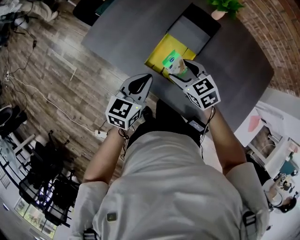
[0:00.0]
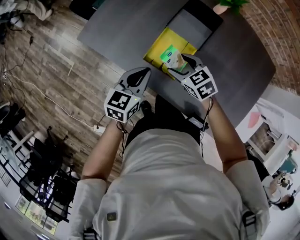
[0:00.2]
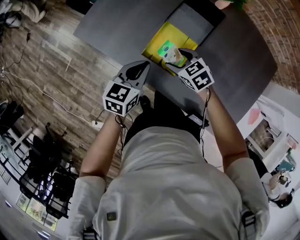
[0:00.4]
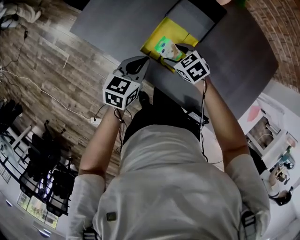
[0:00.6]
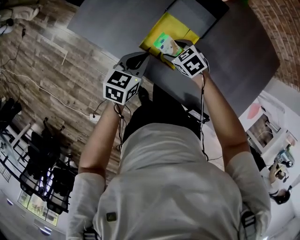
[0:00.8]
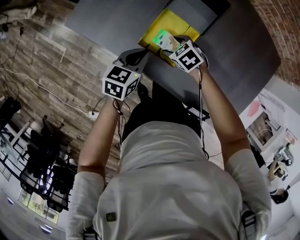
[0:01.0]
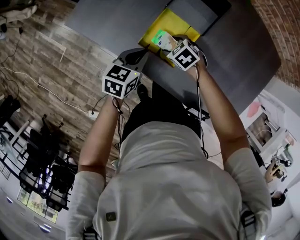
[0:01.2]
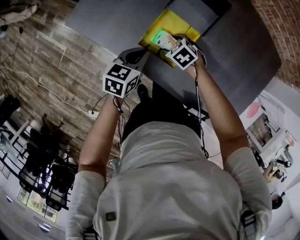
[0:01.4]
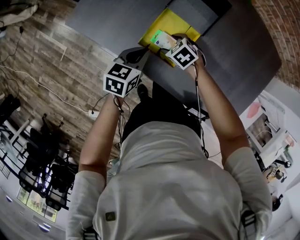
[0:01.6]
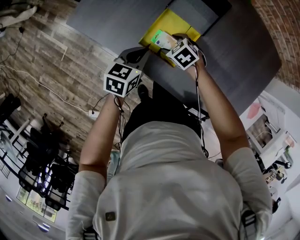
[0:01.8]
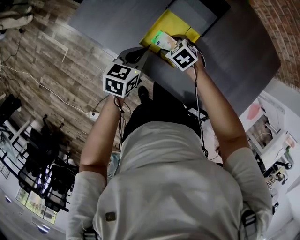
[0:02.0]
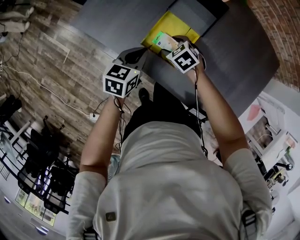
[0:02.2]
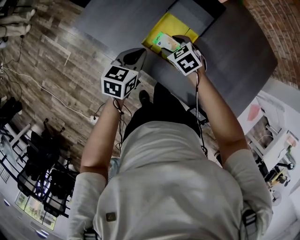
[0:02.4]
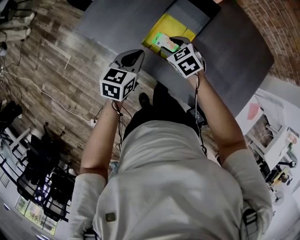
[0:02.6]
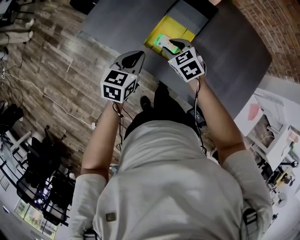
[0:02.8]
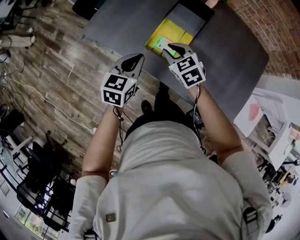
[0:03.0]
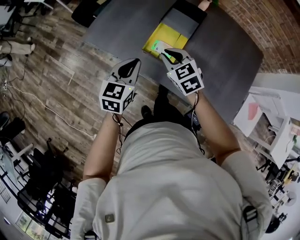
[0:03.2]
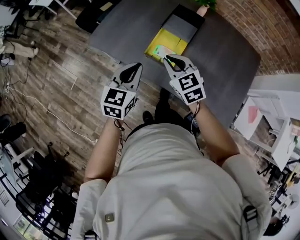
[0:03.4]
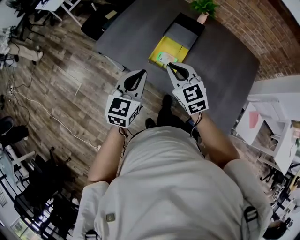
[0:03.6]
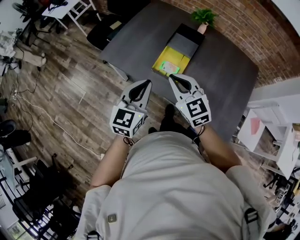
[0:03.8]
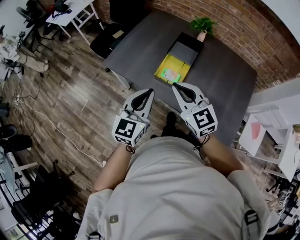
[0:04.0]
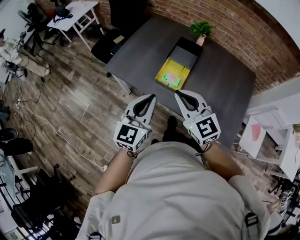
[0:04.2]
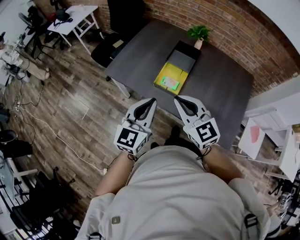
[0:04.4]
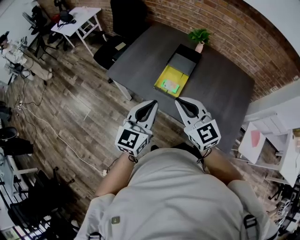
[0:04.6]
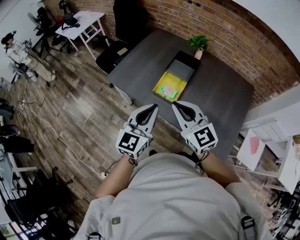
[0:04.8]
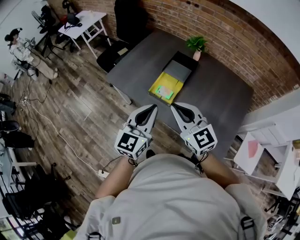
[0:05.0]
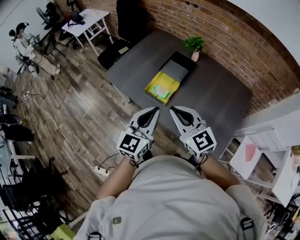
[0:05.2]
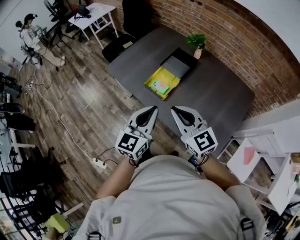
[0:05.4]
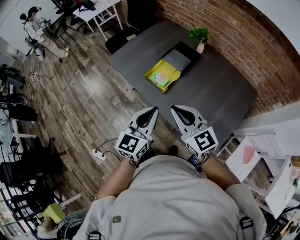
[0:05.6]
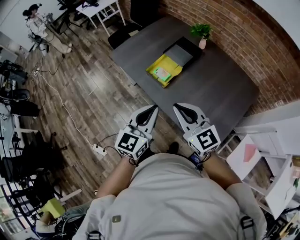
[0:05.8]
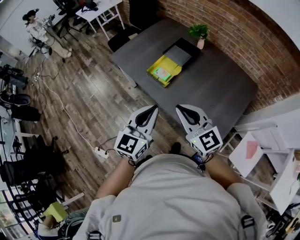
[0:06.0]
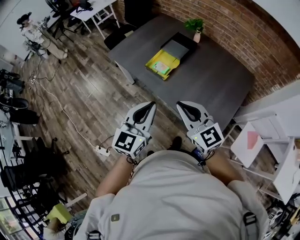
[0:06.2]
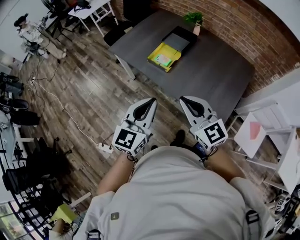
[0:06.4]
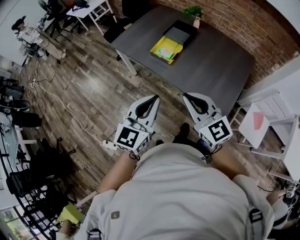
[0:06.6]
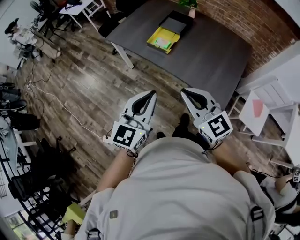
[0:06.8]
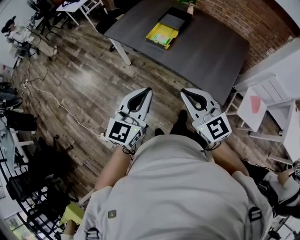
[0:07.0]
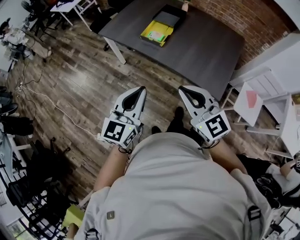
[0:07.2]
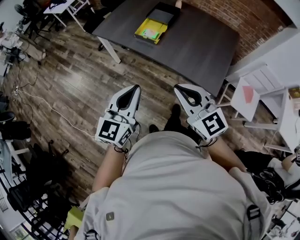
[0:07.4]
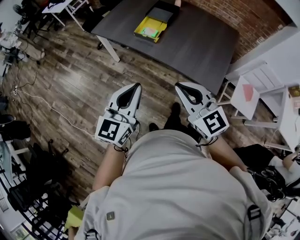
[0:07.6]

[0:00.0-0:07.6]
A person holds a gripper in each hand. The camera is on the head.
0:00.0 to 0:01.6: Both grippers travel together downward, approximately 15 cm. The right gripper turns by about 30 degrees.
0:01.6 to 0:03.0: The right gripper is displaced upward by roughly 20 cm, changes its angle by about 30 degrees, and closes its fingers; the left gripper is displaced upward, backward and to the left by approximately 15 cm.
0:03.0 to 0:04.6: The two grippers go roughly 30 cm upward and backward. The left gripper rotates approximately 30 degrees. The right gripper points its fingers some 30 degrees further upward.
0:04.6 to 0:06.0: The right gripper travels to the right and backward by roughly 20 cm. Meanwhile the left gripper travels backward and to the right by about 25 cm.
0:06.0 to 0:07.6: The two grippers go roughly 20 cm backward and to the left.

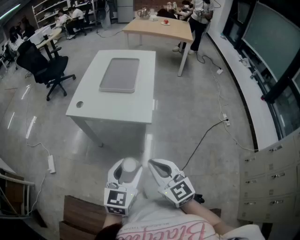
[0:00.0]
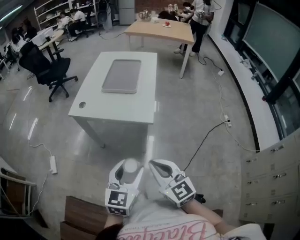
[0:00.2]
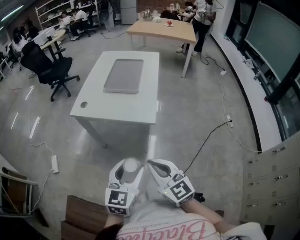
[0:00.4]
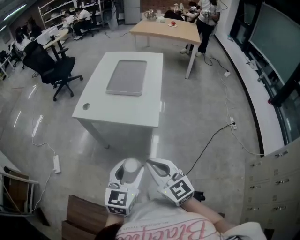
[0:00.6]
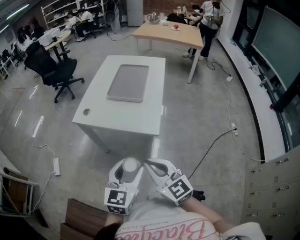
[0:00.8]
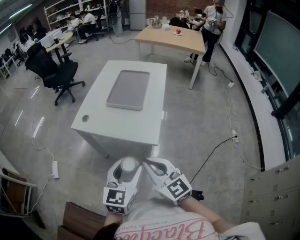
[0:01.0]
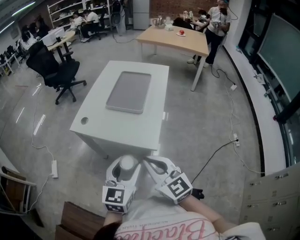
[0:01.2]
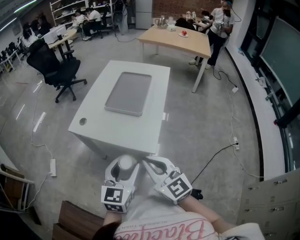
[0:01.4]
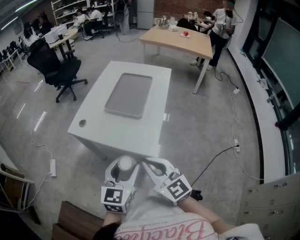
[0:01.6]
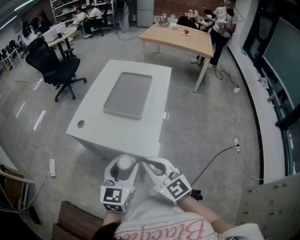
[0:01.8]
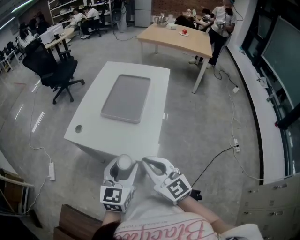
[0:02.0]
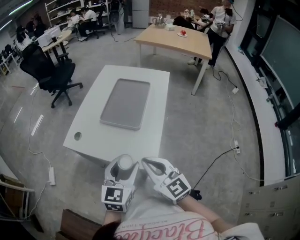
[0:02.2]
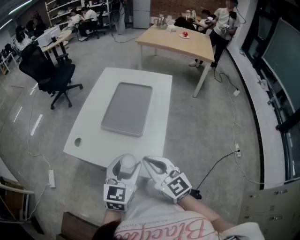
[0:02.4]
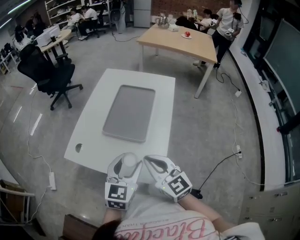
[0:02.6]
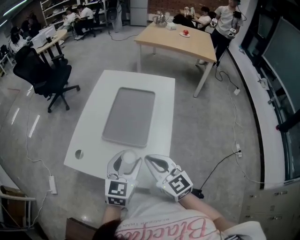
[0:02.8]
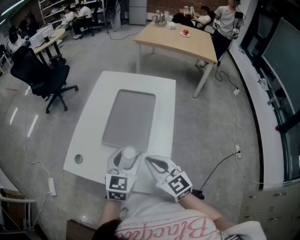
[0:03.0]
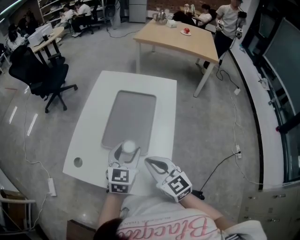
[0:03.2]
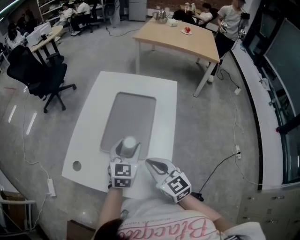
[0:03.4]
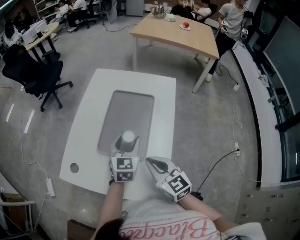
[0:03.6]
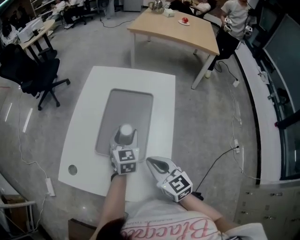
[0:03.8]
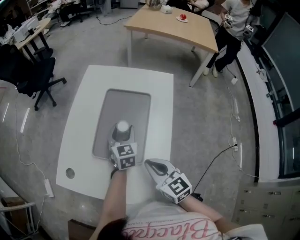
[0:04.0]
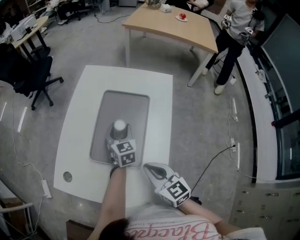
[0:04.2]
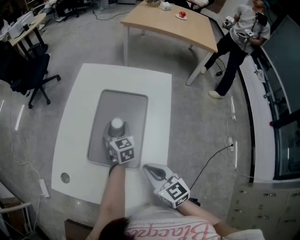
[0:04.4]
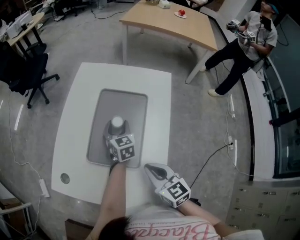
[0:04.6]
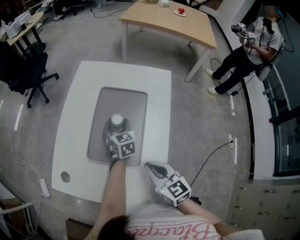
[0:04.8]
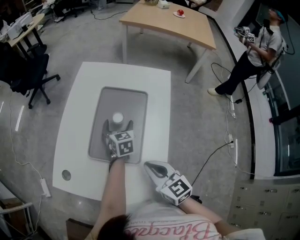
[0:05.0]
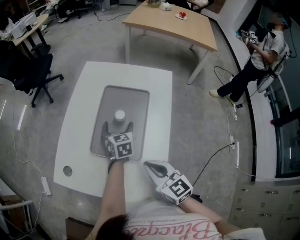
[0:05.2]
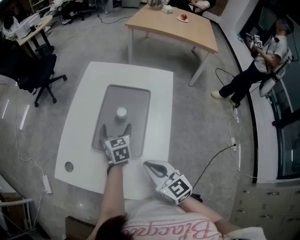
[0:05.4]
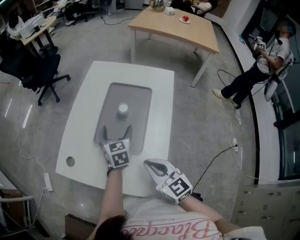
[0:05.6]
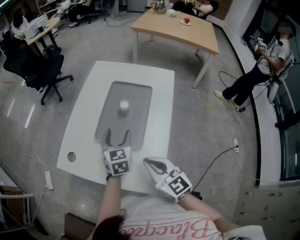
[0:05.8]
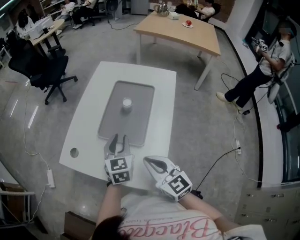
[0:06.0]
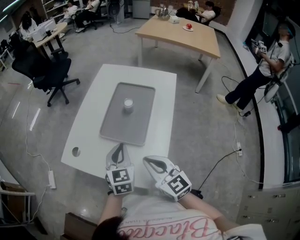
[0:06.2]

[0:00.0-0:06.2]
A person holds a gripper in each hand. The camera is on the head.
0:00.0 to 0:01.6: Both grippers travel together forward, some 15 cm.
0:01.6 to 0:03.2: The two grippers go roughly 25 cm forward.
0:03.2 to 0:04.6: The right gripper heads downward, covering some 5 cm. Meanwhile the left gripper heads forward and downward, covering approximately 20 cm, and turns by approximately 20 degrees.
0:04.6 to 0:06.2: The right gripper travels upward, to the left and backward by about 10 cm, while the left gripper travels backward, upward and to the left by some 25 cm, and closes.

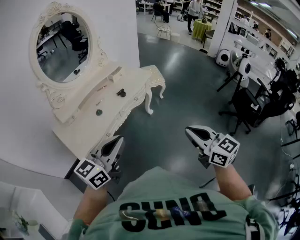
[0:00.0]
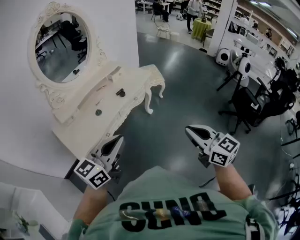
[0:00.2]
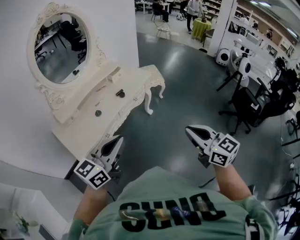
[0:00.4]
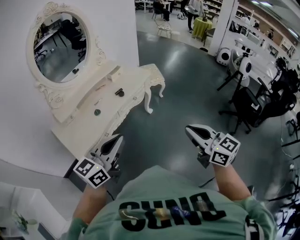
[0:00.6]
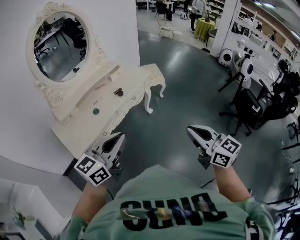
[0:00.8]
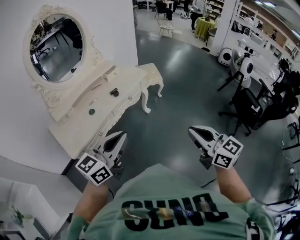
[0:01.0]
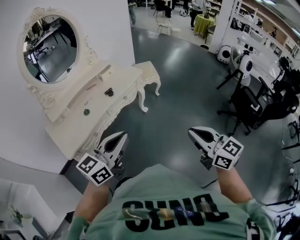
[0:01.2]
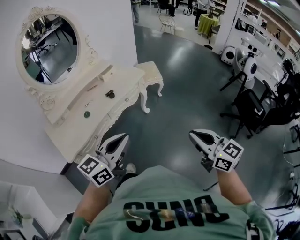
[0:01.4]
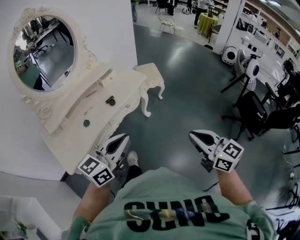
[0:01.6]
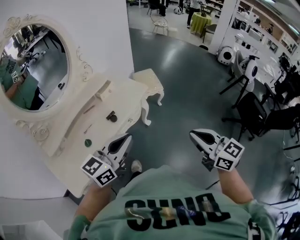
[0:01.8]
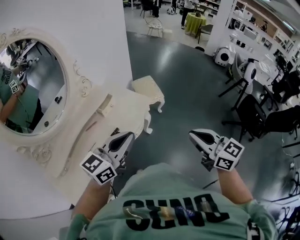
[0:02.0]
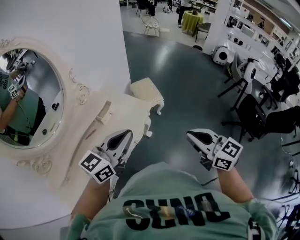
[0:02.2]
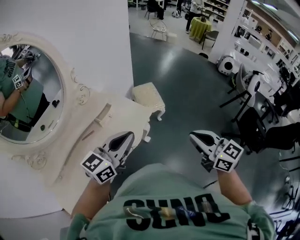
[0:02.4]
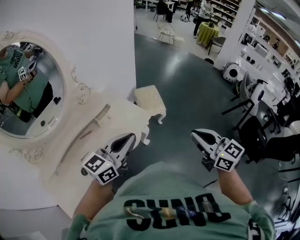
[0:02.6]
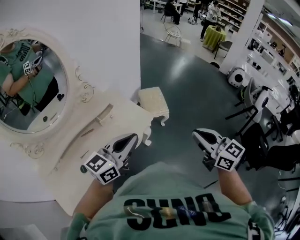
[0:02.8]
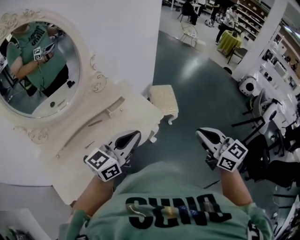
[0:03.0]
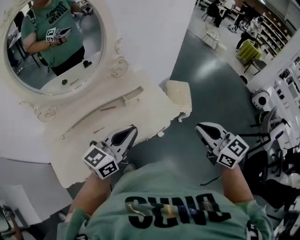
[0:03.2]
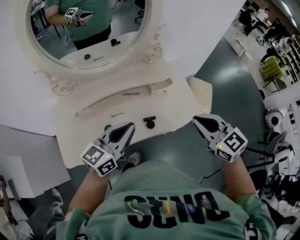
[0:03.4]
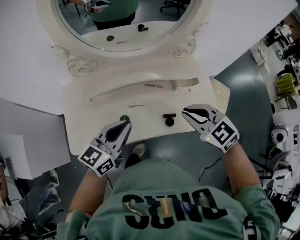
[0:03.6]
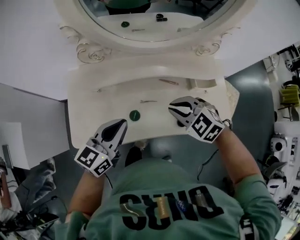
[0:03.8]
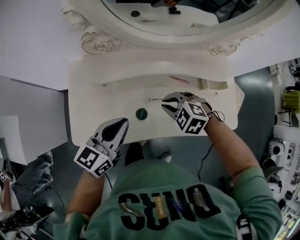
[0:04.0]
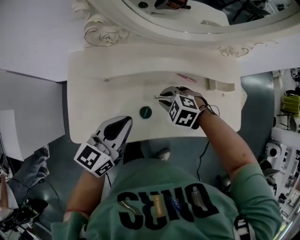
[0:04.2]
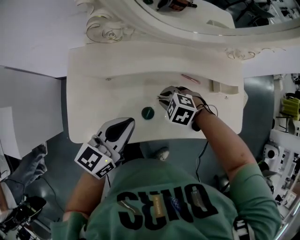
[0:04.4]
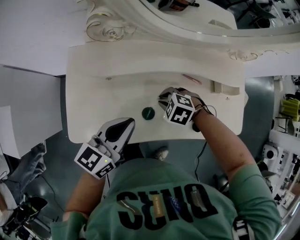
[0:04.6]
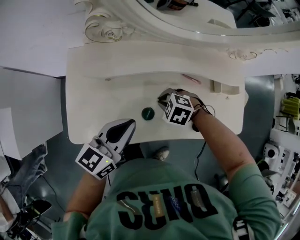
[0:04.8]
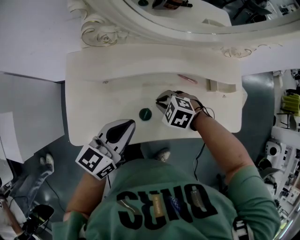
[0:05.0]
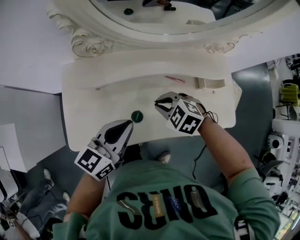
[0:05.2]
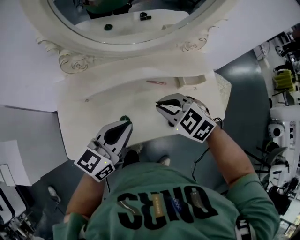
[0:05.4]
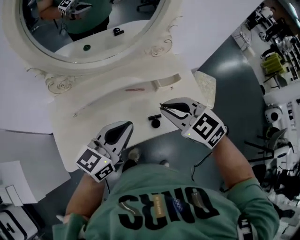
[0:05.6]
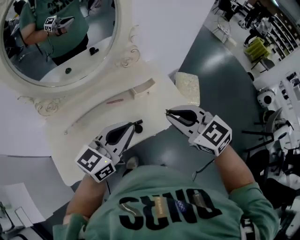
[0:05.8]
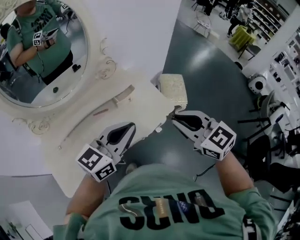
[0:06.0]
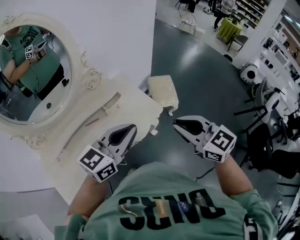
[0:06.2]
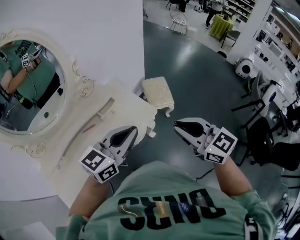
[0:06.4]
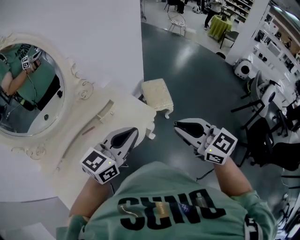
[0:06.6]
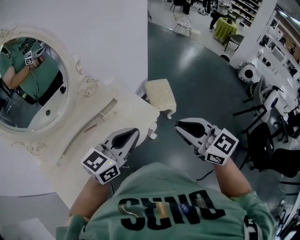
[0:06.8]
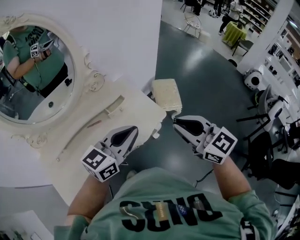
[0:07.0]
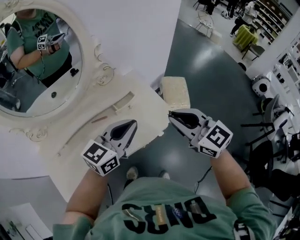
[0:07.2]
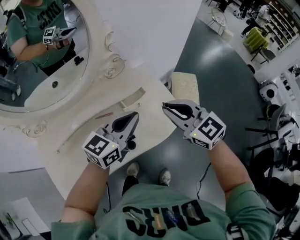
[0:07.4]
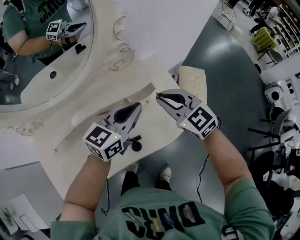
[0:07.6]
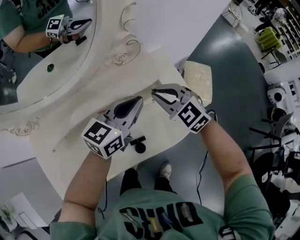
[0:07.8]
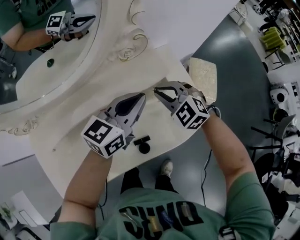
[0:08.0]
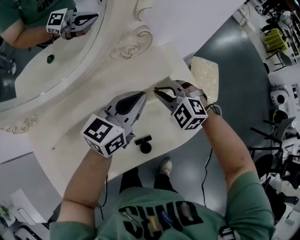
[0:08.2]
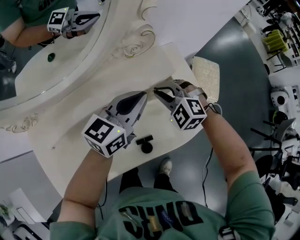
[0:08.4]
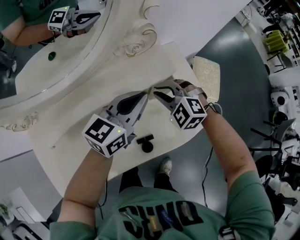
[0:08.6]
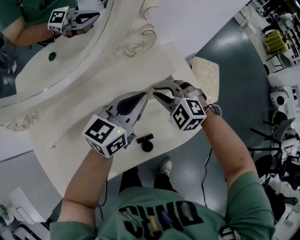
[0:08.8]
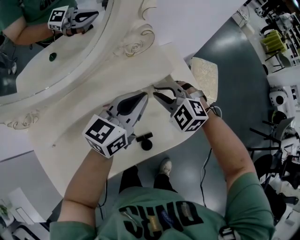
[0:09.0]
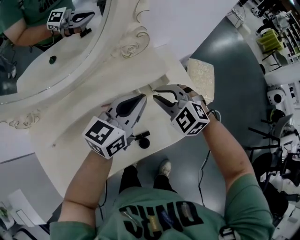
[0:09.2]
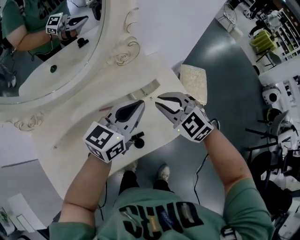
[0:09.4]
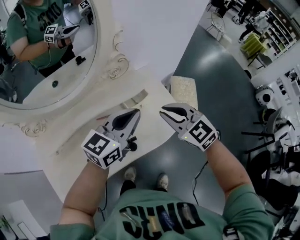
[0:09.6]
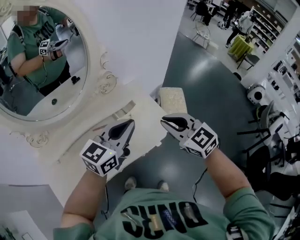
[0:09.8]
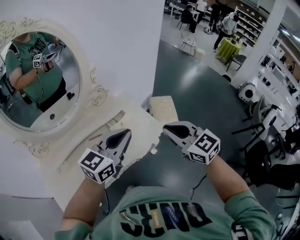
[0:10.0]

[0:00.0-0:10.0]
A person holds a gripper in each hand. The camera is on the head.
0:00.0 to 0:01.4: Both grippers travel together to the right and forward, about 15 cm.
0:01.4 to 0:02.8: The pair of grippers is taken forward, about 40 cm.
0:02.8 to 0:04.2: Both grippers are carried some 50 cm. The right gripper angles its fingers downward, by approximately 60 degrees. The left gripper turns by some 50 degrees.
0:04.2 to 0:05.8: The left gripper ends up approximately 30 cm from where it was, and turns by about 30 degrees. The right gripper shifts approximately 30 cm upward, and tips its fingers upward by about 40 degrees.
0:05.8 to 0:07.2: The two grippers go roughly 15 cm to the right and forward.
0:07.2 to 0:08.6: The left gripper shifts some 25 cm forward, downward and to the left, while the right gripper goes roughly 40 cm downward, forward and to the left, and tilts its fingers about 30 degrees downward.
0:08.6 to 0:10.0: The grippers both shift upward, backward and to the right by some 35 cm. The right gripper swivels about 50 degrees.
